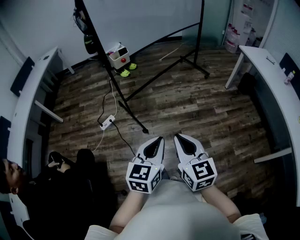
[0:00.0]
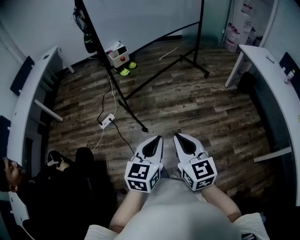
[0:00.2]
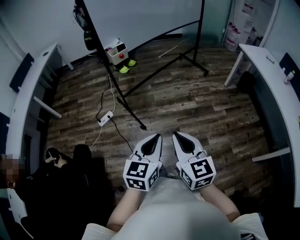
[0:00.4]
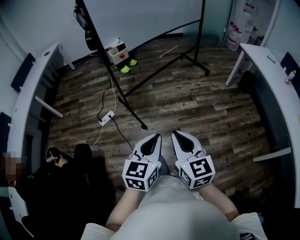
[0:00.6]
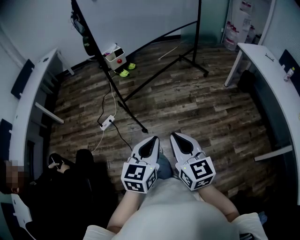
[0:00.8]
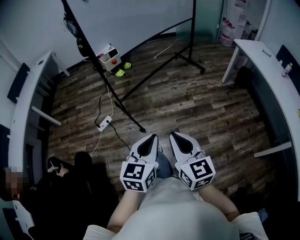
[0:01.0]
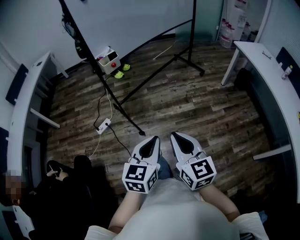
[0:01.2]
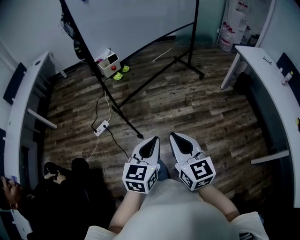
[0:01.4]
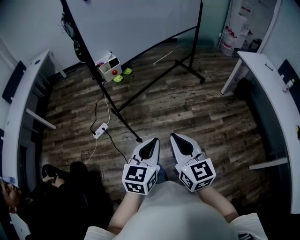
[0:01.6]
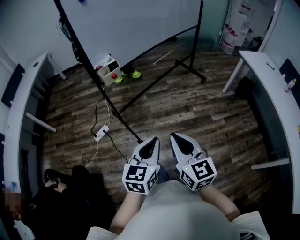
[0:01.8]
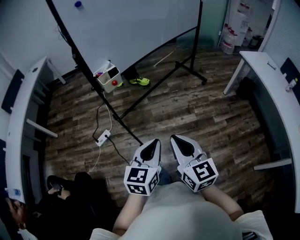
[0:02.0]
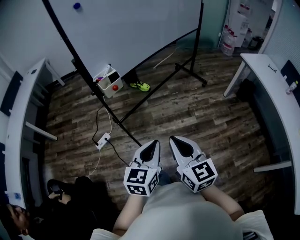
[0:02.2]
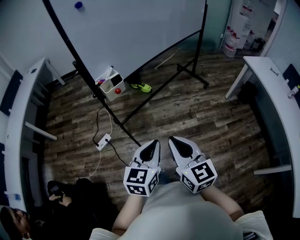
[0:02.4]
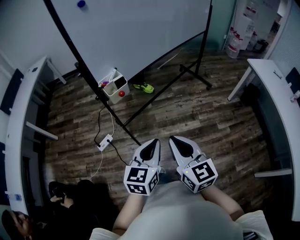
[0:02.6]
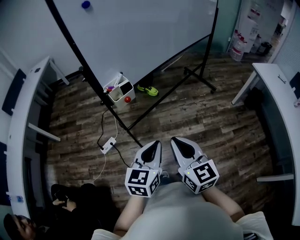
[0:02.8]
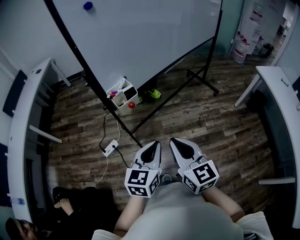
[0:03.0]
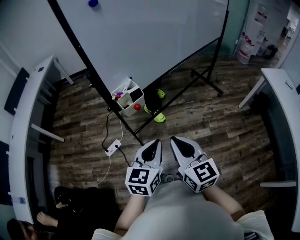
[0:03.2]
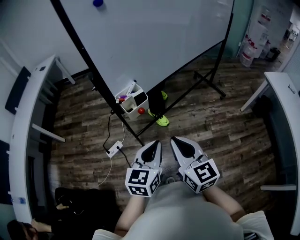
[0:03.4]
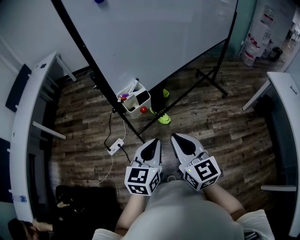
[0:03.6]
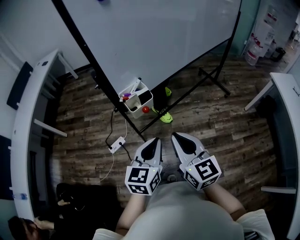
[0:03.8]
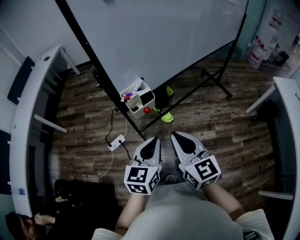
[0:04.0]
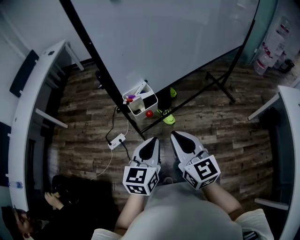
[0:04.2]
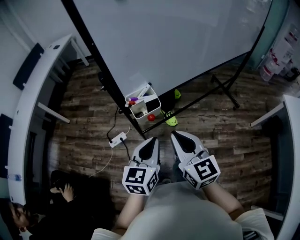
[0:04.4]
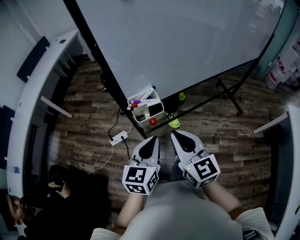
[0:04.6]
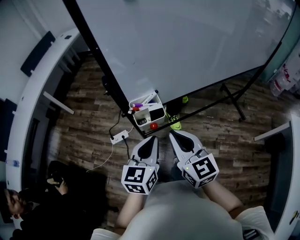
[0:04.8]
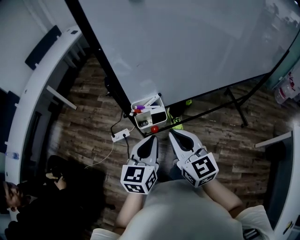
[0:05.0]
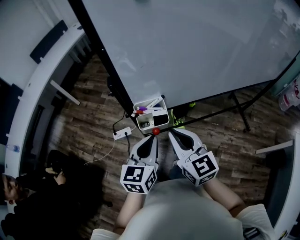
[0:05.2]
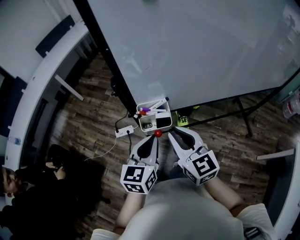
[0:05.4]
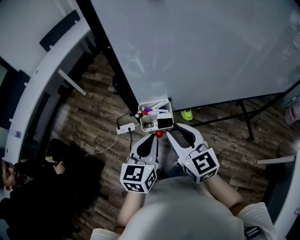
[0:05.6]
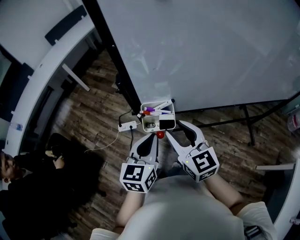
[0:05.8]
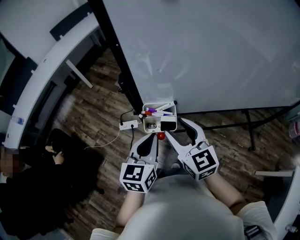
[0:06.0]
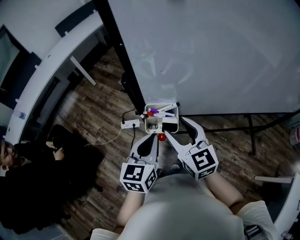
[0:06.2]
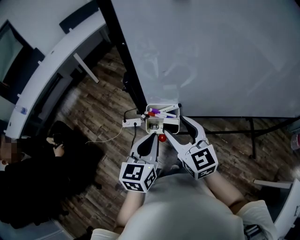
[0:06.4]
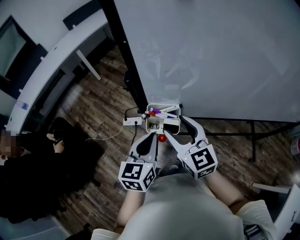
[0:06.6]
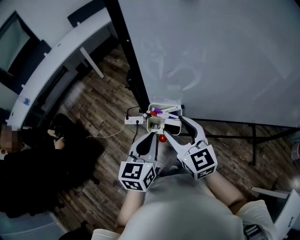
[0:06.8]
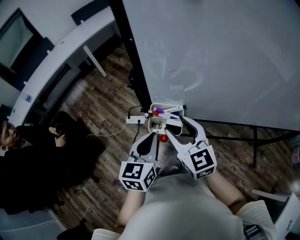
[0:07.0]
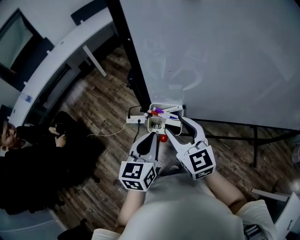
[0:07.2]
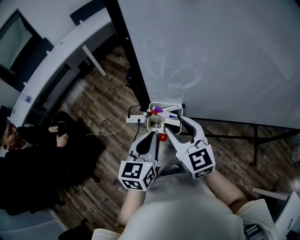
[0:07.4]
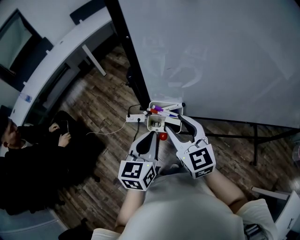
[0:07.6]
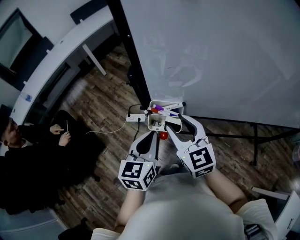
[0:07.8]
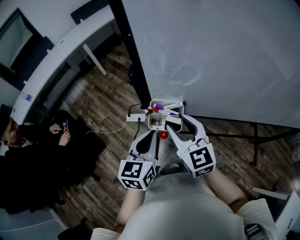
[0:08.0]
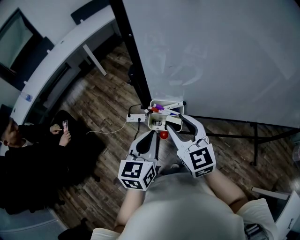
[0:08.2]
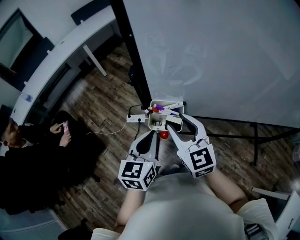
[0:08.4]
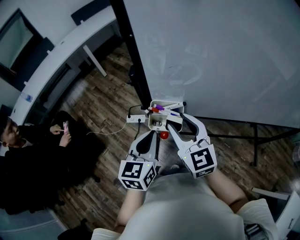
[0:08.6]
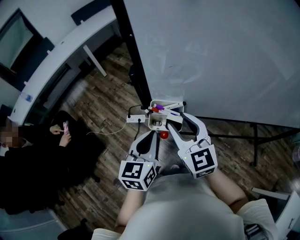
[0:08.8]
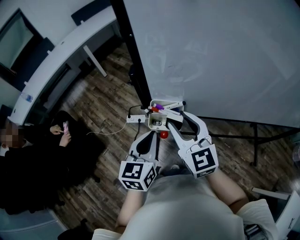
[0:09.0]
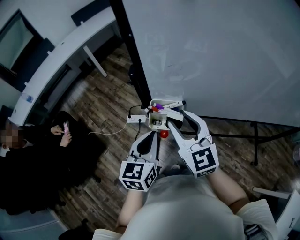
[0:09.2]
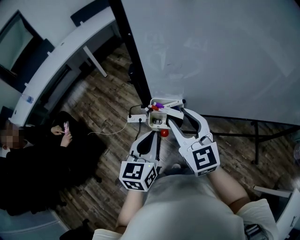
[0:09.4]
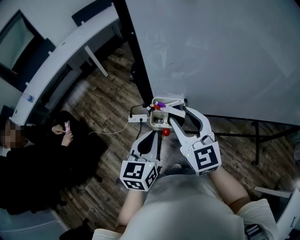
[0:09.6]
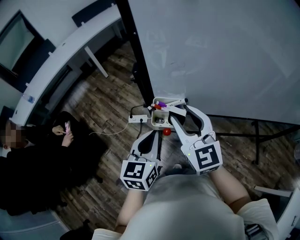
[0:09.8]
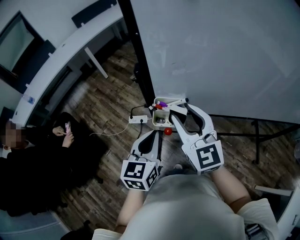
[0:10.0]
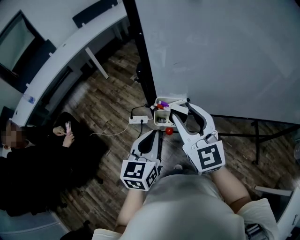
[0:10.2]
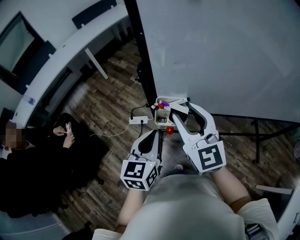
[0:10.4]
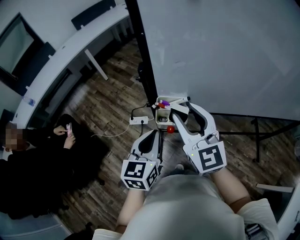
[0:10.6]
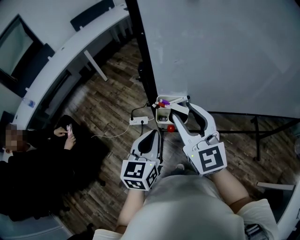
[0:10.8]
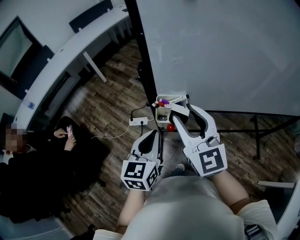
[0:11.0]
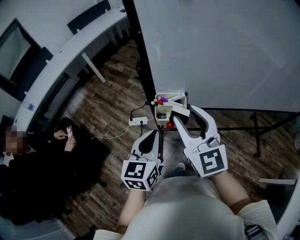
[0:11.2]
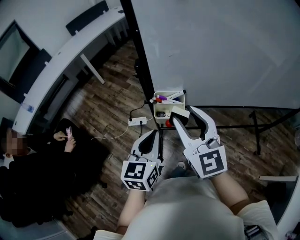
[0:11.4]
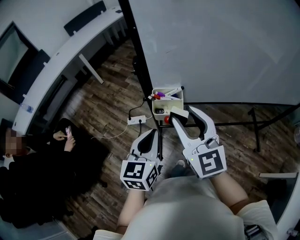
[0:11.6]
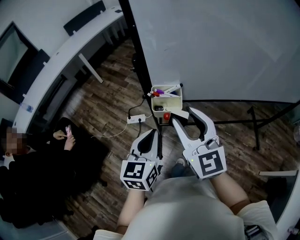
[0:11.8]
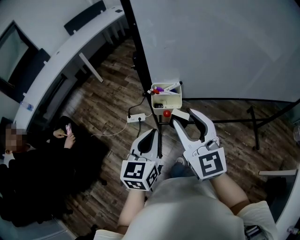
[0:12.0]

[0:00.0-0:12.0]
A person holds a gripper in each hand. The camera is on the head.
0.0 to 1.6 s: The two grippers go some 10 cm forward.
1.6 to 3.0 s: The grippers both shift forward and to the left by approximately 25 cm.
3.0 to 4.4 s: The left gripper is displaced forward and to the left by about 15 cm. The right gripper travels forward by about 15 cm.
4.4 to 6.0 s: The left gripper ends up roughly 10 cm from where it was, and swivels roughly 30 degrees. Meanwhile the right gripper ends up approximately 15 cm from where it was, swivels roughly 30 degrees, and opens its fingers.
6.0 to 9.0 s: The grippers stay close to where they were, moving slightly.
9.0 to 10.4 s: The right gripper travels upward by some 5 cm.
10.4 to 12.0 s: The two grippers go approximately 10 cm backward.

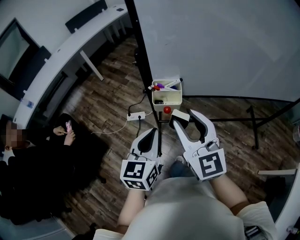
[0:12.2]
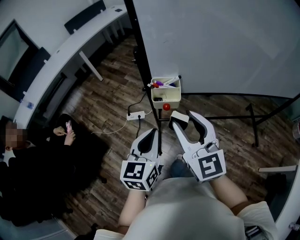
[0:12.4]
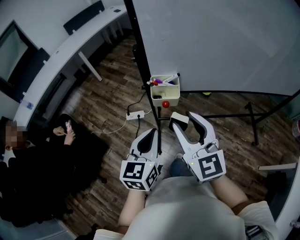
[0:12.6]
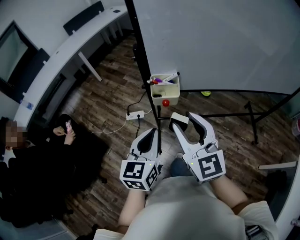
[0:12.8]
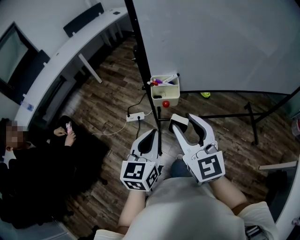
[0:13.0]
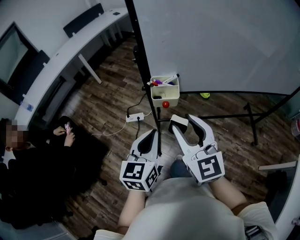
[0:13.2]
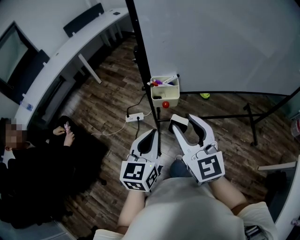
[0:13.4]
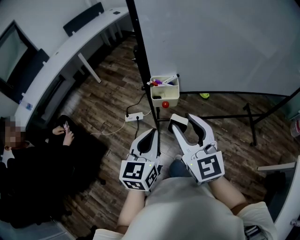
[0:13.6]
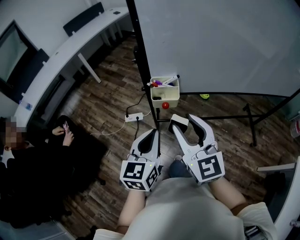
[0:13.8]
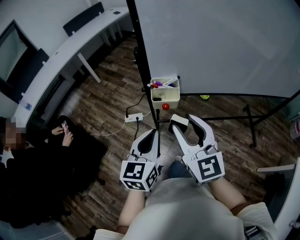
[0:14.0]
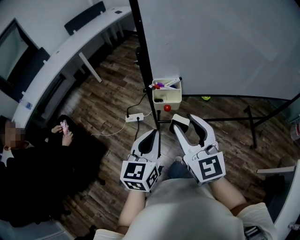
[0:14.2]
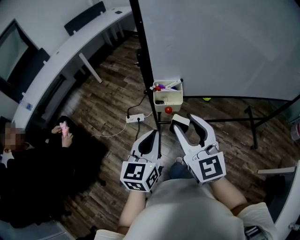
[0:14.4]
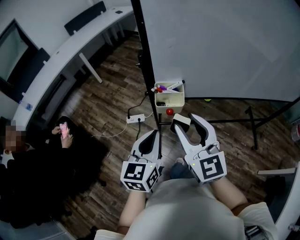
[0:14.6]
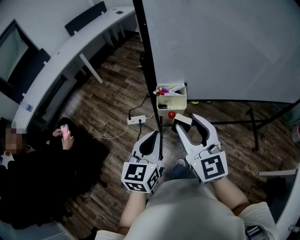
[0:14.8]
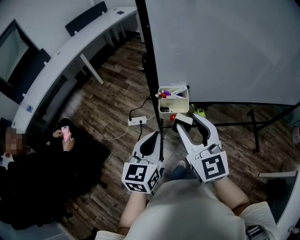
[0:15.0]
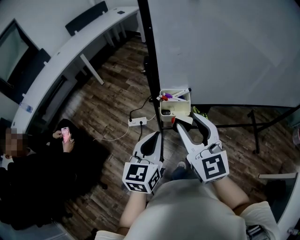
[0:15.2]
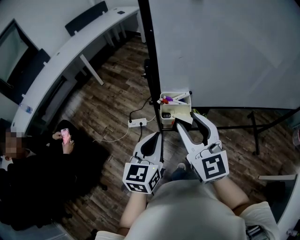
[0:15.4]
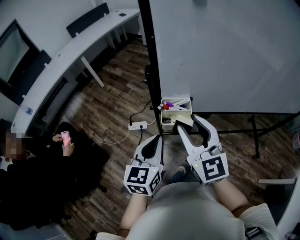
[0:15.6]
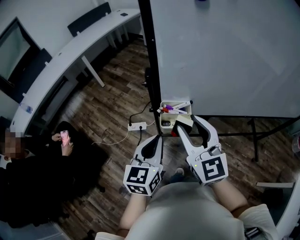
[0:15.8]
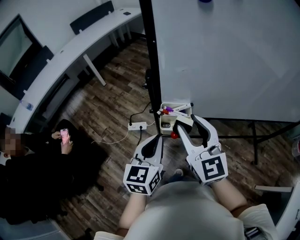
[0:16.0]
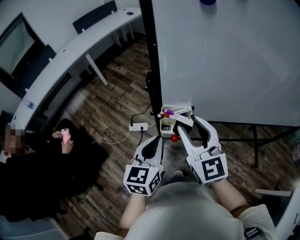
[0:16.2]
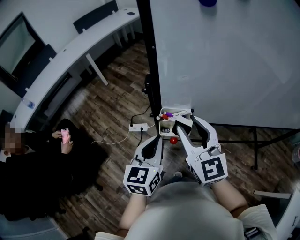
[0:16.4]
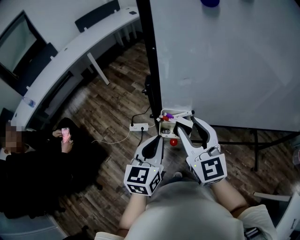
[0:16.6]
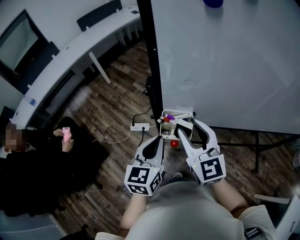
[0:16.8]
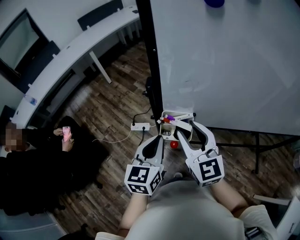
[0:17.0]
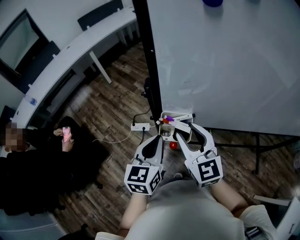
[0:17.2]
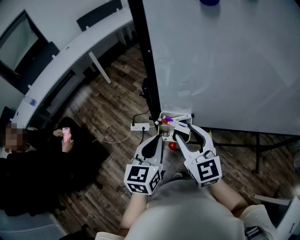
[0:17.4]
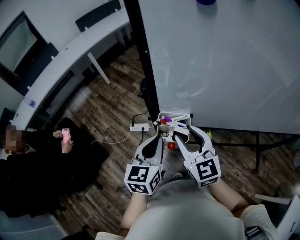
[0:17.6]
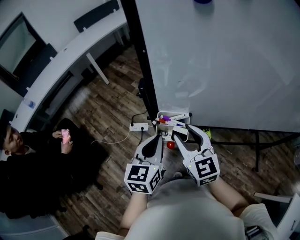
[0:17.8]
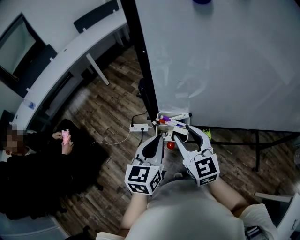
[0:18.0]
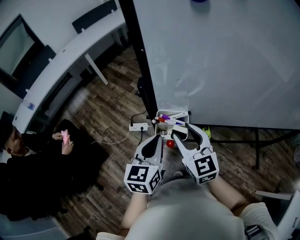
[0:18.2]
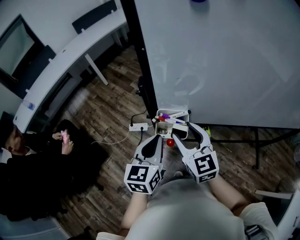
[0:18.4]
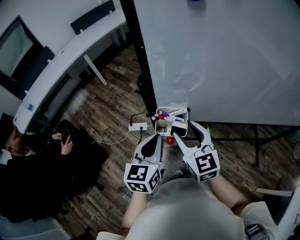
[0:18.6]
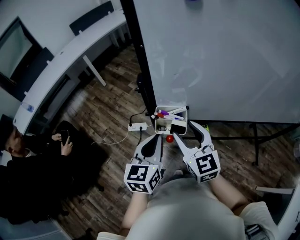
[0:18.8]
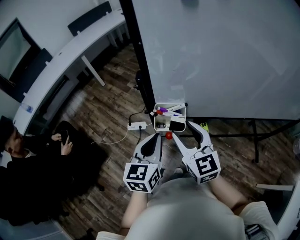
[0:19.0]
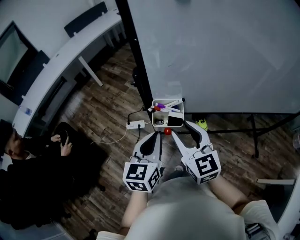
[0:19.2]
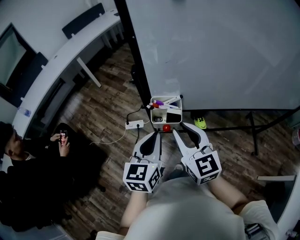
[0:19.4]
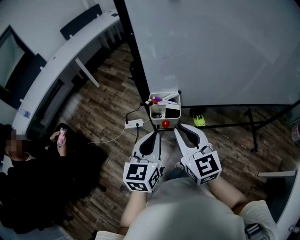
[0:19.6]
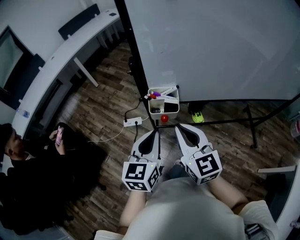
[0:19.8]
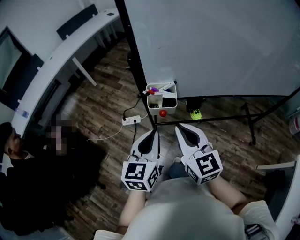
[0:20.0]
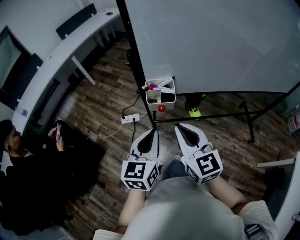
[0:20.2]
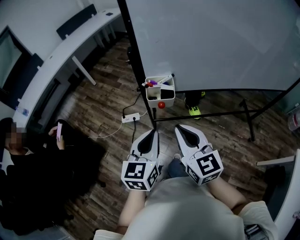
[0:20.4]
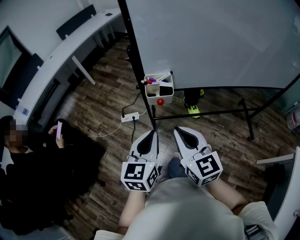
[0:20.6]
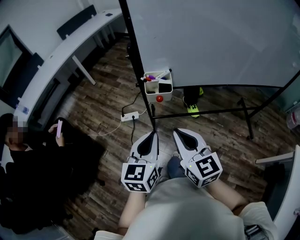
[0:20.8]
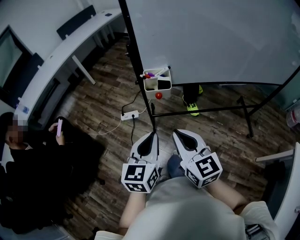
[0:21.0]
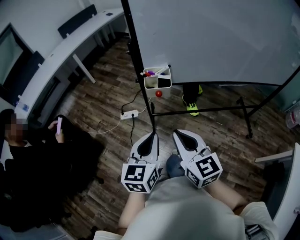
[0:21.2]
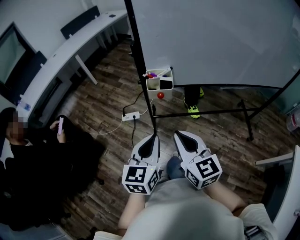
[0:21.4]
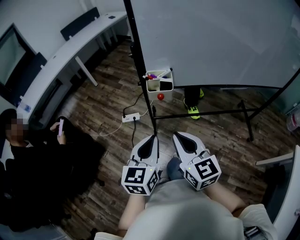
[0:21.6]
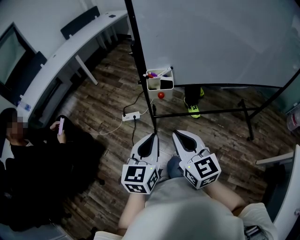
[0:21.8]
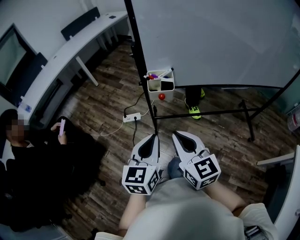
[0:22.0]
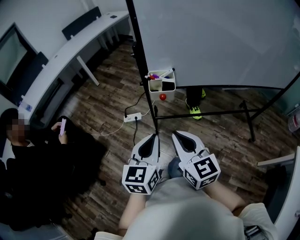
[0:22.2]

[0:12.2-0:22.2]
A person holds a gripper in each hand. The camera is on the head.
12.2 to 13.6 s: The grippers make only small movements.
13.6 to 15.0 s: Both grippers move forward, about 5 cm.
15.0 to 16.4 s: The grippers both shift forward by roughly 10 cm.
16.4 to 18.0 s: The right gripper goes roughly 10 cm downward.
18.0 to 19.4 s: The grippers both shift backward by some 5 cm.
19.4 to 20.8 s: The two grippers go roughly 15 cm backward. The right gripper closes up.
20.8 to 22.2 s: The grippers stay close to where they were, moving slightly.

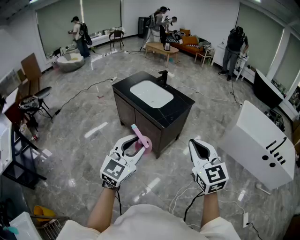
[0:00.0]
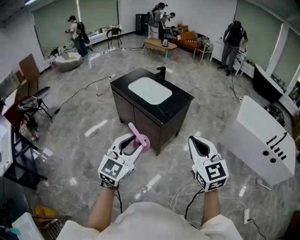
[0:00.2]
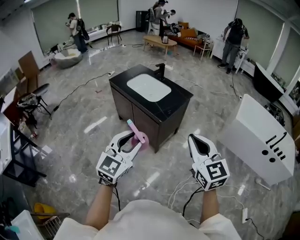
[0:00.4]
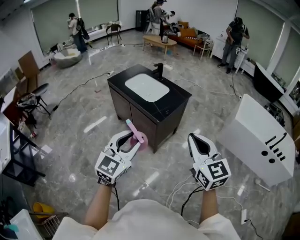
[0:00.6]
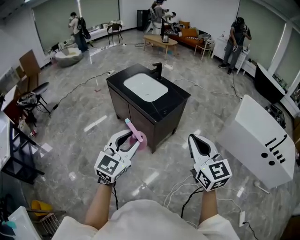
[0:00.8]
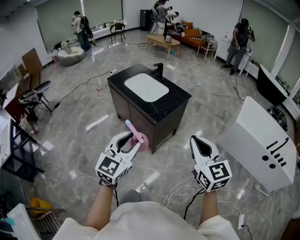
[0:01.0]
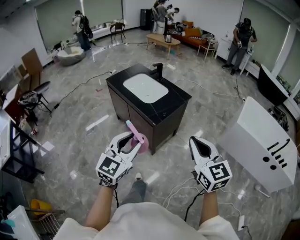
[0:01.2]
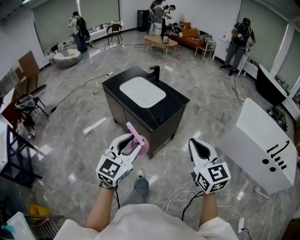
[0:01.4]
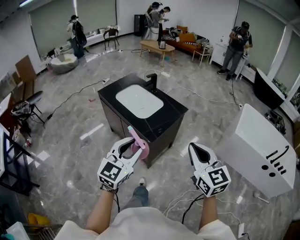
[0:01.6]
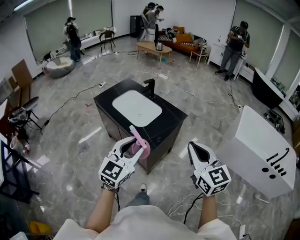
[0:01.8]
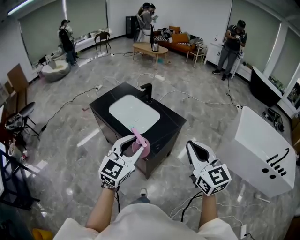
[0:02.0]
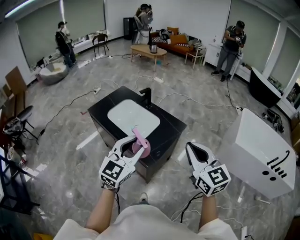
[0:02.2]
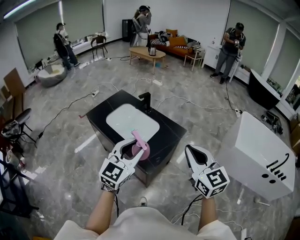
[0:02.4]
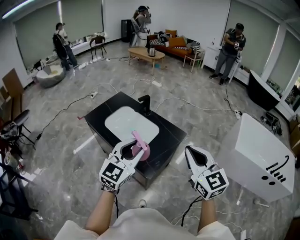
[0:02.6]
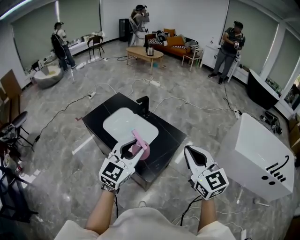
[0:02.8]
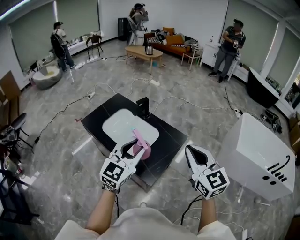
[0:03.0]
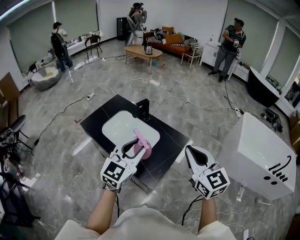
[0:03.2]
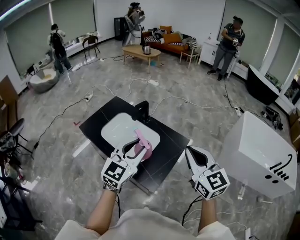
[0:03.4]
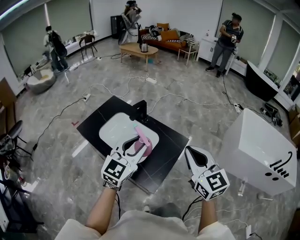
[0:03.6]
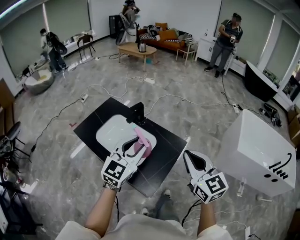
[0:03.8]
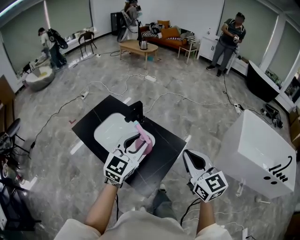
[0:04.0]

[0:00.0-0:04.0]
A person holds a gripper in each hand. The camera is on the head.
0.0 to 1.4 s: The grippers both shift forward and to the right by approximately 15 cm.
1.4 to 2.6 s: Both grippers move forward, approximately 30 cm.
2.6 to 4.0 s: The grippers both shift forward by approximately 20 cm.
